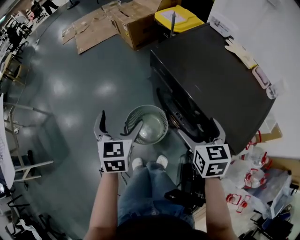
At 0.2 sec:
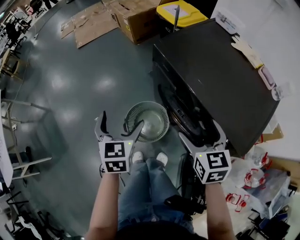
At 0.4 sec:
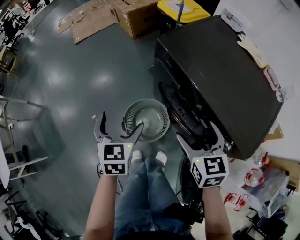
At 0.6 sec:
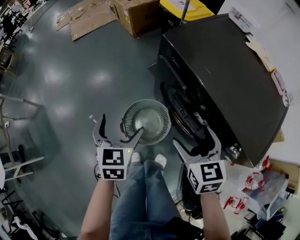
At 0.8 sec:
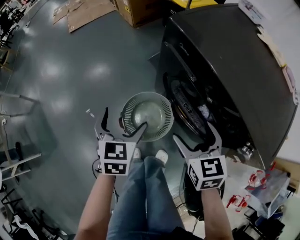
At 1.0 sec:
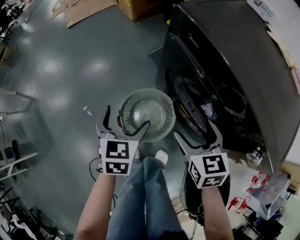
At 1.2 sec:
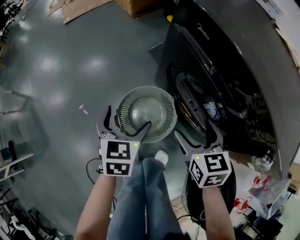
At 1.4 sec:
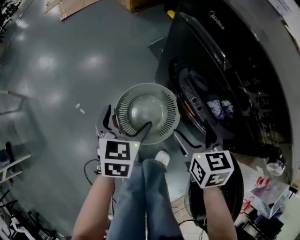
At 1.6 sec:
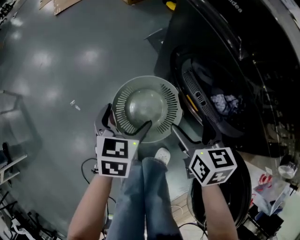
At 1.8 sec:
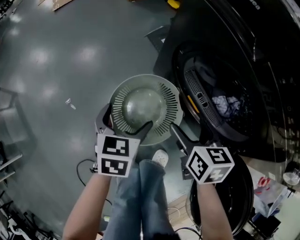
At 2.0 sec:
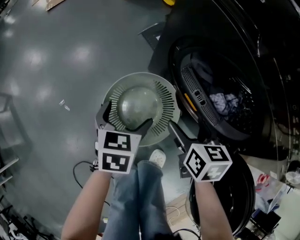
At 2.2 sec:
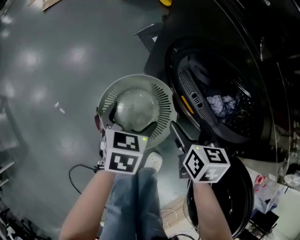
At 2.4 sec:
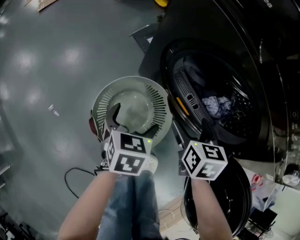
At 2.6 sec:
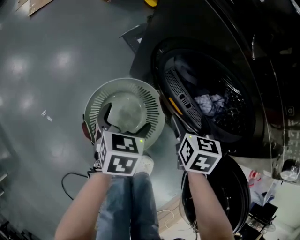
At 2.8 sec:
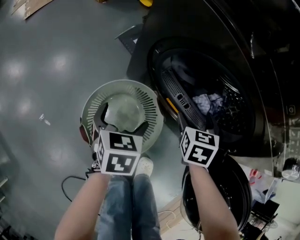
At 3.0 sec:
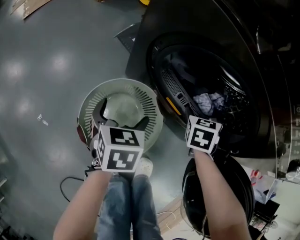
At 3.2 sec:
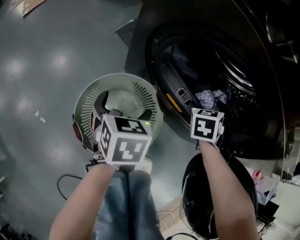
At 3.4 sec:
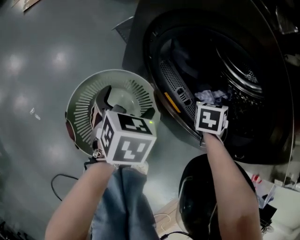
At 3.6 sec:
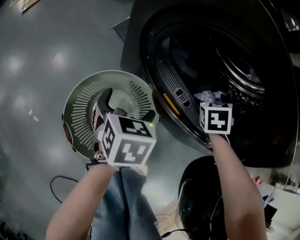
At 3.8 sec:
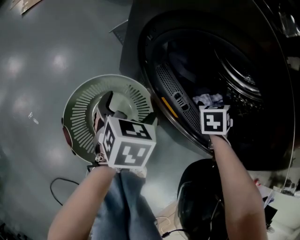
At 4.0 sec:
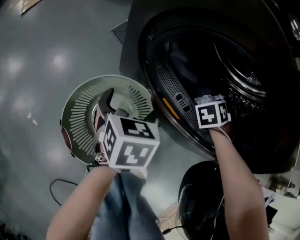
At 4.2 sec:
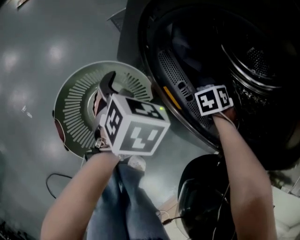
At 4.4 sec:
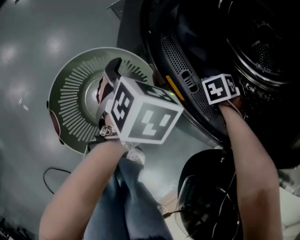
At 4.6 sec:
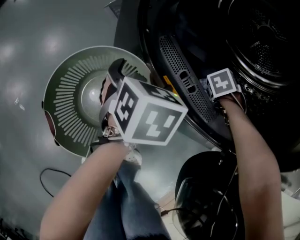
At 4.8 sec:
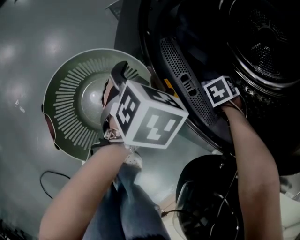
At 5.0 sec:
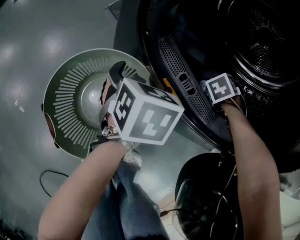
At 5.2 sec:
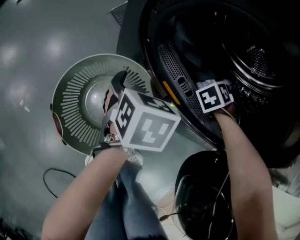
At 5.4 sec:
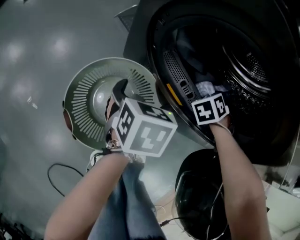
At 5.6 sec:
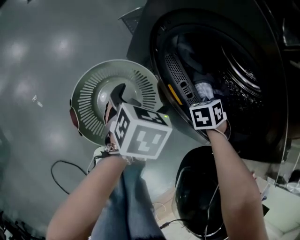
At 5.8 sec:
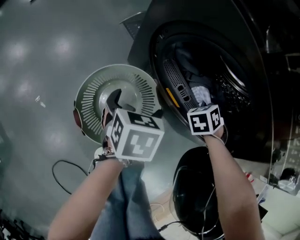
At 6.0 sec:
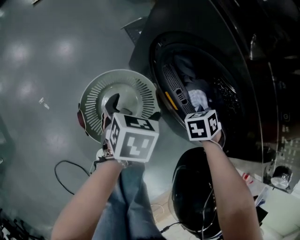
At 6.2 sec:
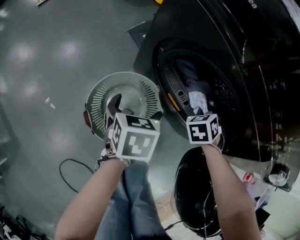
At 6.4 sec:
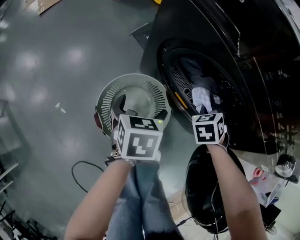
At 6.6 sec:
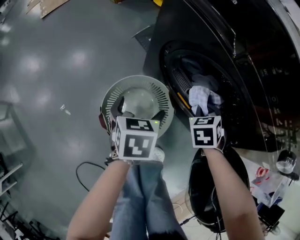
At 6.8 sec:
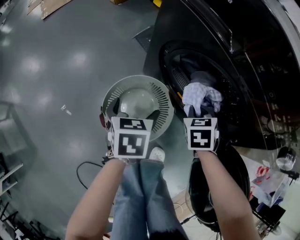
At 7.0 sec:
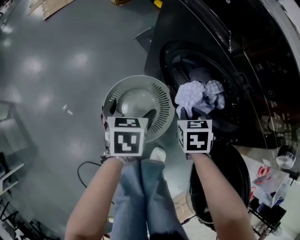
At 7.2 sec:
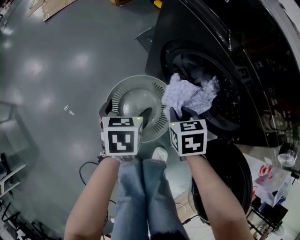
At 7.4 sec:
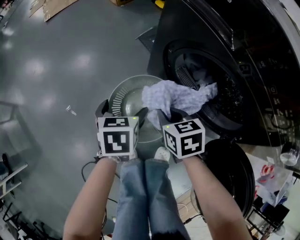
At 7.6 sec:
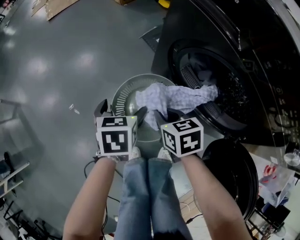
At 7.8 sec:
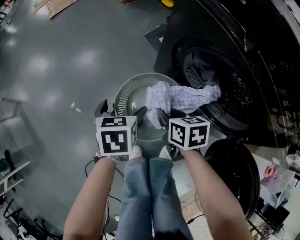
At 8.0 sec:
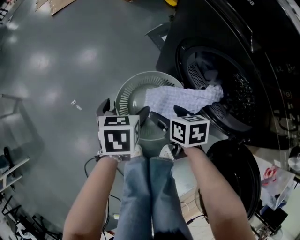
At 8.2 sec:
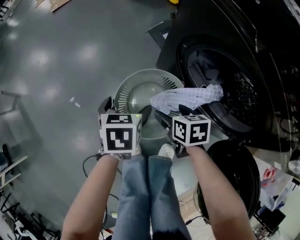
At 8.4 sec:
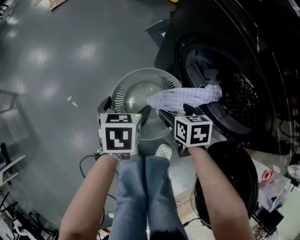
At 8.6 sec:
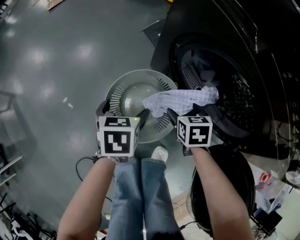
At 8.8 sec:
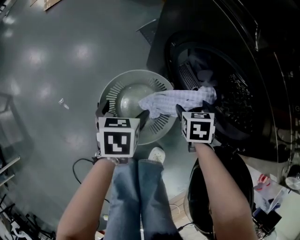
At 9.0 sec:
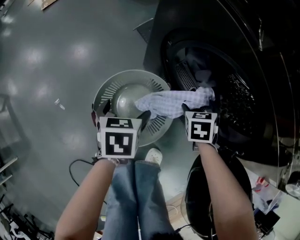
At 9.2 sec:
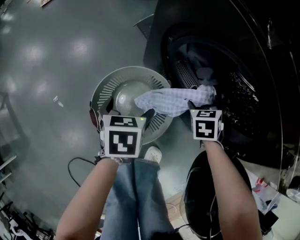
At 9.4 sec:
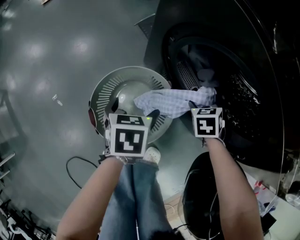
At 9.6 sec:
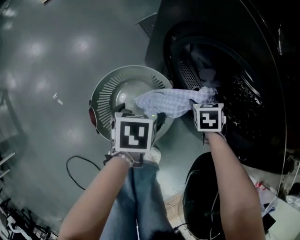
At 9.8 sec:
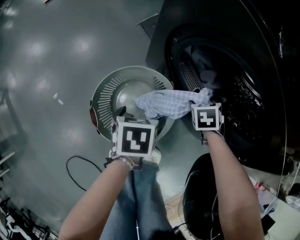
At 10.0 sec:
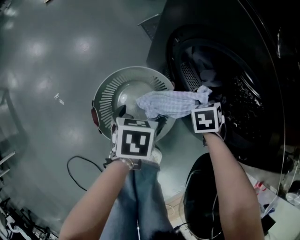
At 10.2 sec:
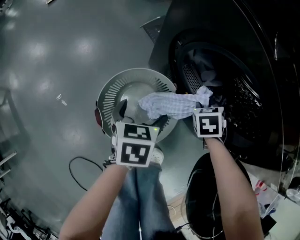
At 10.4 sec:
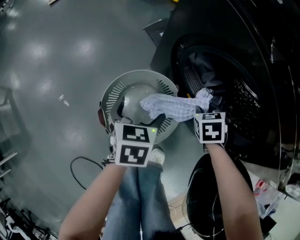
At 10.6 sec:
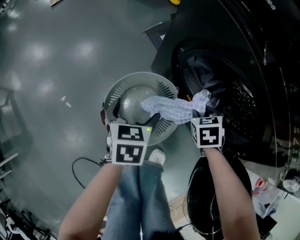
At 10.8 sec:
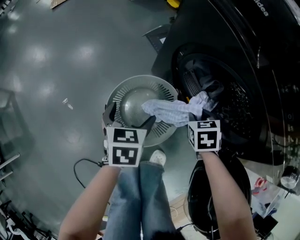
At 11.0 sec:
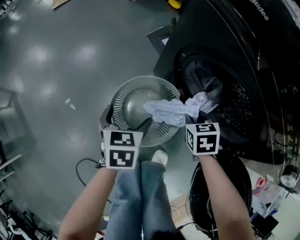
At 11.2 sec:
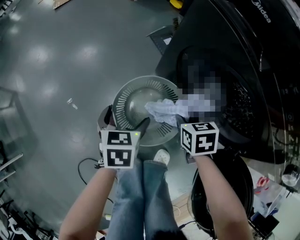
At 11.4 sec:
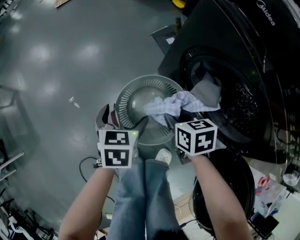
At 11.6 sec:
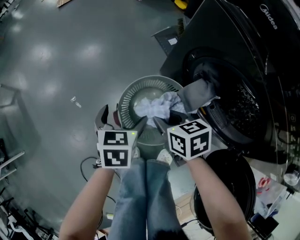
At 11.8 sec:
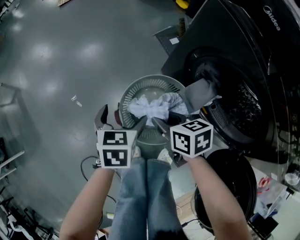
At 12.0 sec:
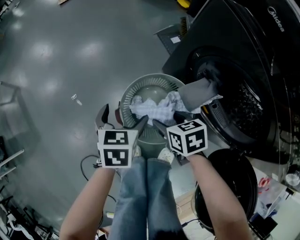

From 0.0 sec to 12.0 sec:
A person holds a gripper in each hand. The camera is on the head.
From 0.0 sec to 1.6 sec: Both grippers travel together downward, roughly 35 cm. The left gripper changes its angle by approximately 20 degrees.
From 1.6 sec to 3.0 sec: The left gripper goes about 10 cm downward. The right gripper shifts by some 25 cm, and turns by roughly 40 degrees.
From 3.0 sec to 4.4 sec: The left gripper travels forward and downward by roughly 10 cm. The right gripper goes some 20 cm forward, downward and to the right, and changes its angle by some 40 degrees.
From 4.4 sec to 6.0 sec: The left gripper is displaced upward and backward by about 10 cm; the right gripper is displaced backward and upward by some 15 cm, and closes its fingers.
From 6.0 sec to 7.6 sec: The left gripper moves about 15 cm; the right gripper shifts by about 30 cm, and changes its angle by approximately 60 degrees.
From 7.6 sec to 9.0 sec: The left gripper moves downward, roughly 5 cm. The right gripper ends up approximately 25 cm from where it was, turns by some 40 degrees, and opens up.
From 9.0 sec to 10.4 sec: The right gripper closes up.
From 10.4 sec to 12.0 sec: The left gripper moves roughly 15 cm, while the right gripper shifts by approximately 25 cm, and changes its angle by about 30 degrees.

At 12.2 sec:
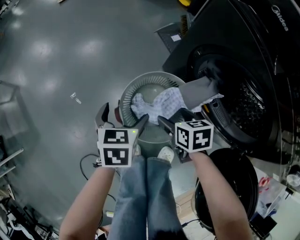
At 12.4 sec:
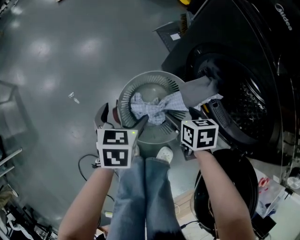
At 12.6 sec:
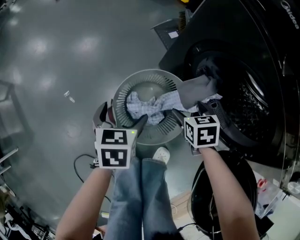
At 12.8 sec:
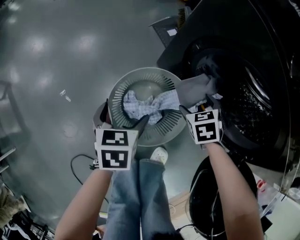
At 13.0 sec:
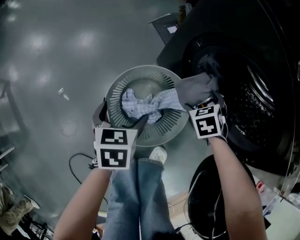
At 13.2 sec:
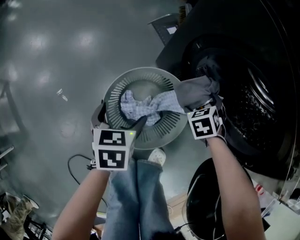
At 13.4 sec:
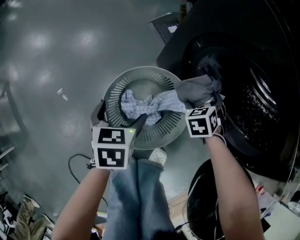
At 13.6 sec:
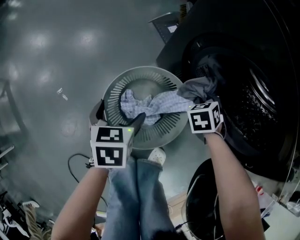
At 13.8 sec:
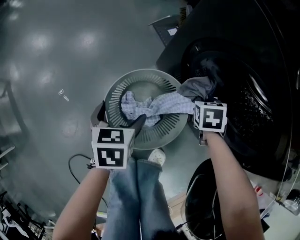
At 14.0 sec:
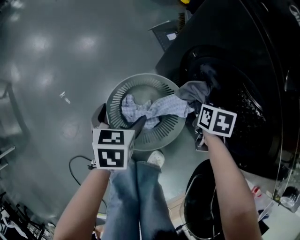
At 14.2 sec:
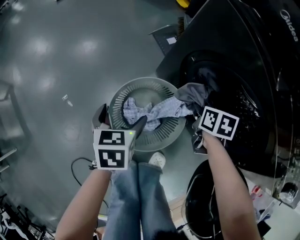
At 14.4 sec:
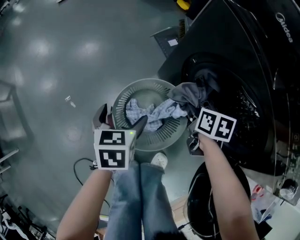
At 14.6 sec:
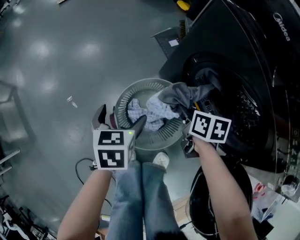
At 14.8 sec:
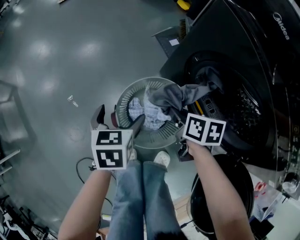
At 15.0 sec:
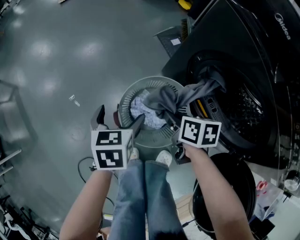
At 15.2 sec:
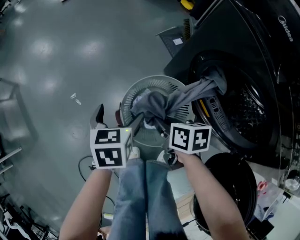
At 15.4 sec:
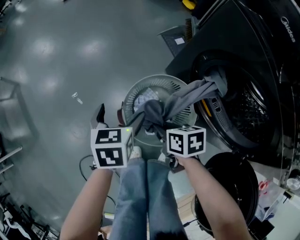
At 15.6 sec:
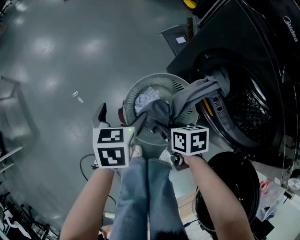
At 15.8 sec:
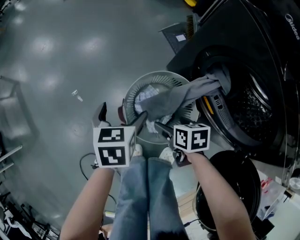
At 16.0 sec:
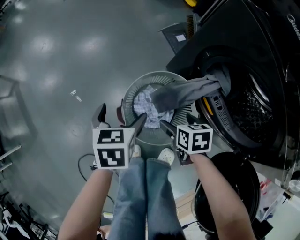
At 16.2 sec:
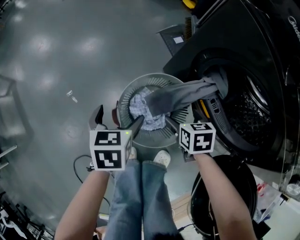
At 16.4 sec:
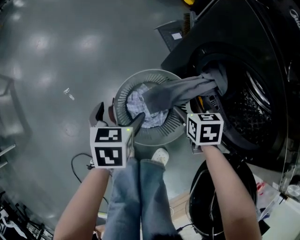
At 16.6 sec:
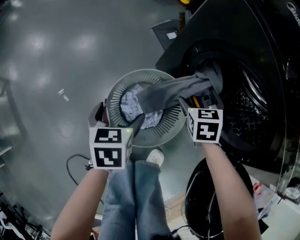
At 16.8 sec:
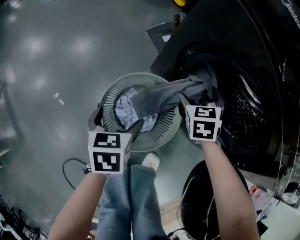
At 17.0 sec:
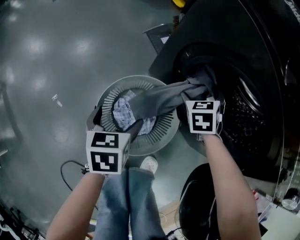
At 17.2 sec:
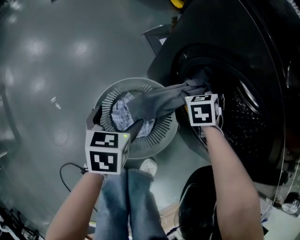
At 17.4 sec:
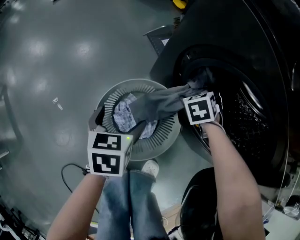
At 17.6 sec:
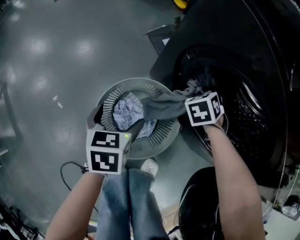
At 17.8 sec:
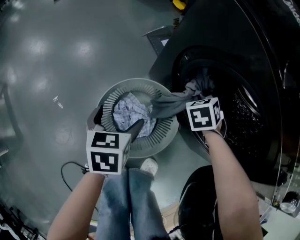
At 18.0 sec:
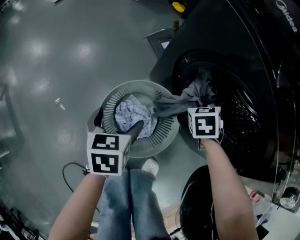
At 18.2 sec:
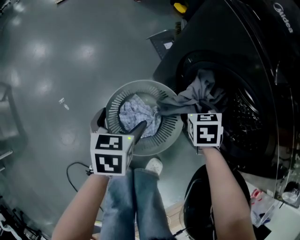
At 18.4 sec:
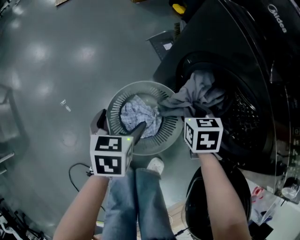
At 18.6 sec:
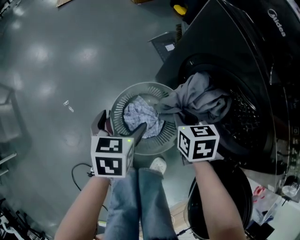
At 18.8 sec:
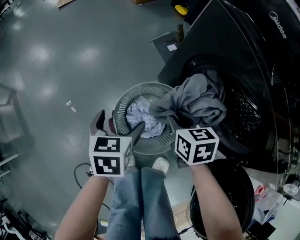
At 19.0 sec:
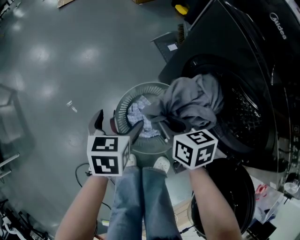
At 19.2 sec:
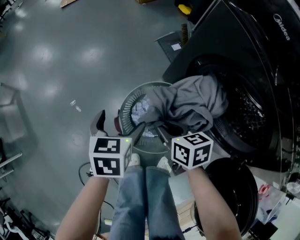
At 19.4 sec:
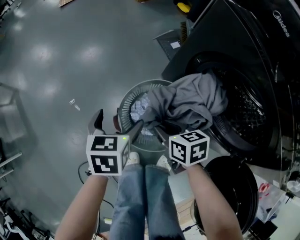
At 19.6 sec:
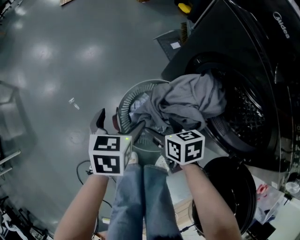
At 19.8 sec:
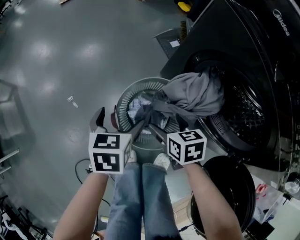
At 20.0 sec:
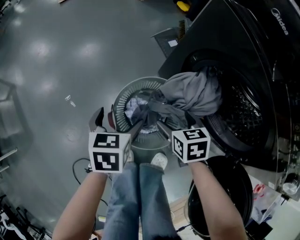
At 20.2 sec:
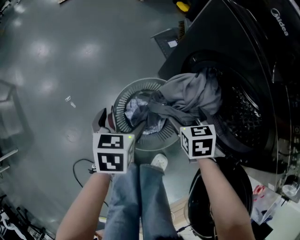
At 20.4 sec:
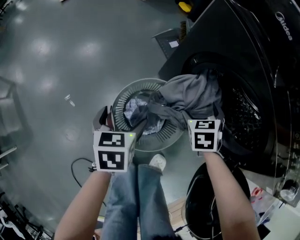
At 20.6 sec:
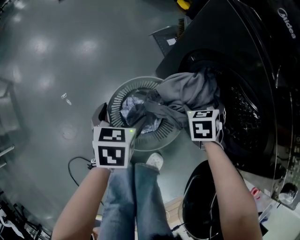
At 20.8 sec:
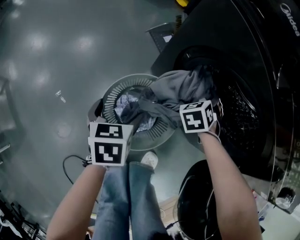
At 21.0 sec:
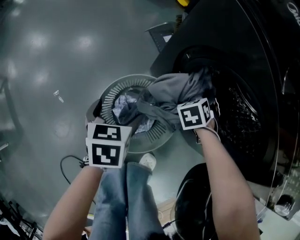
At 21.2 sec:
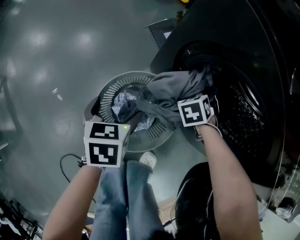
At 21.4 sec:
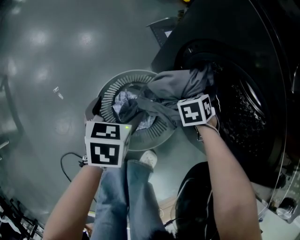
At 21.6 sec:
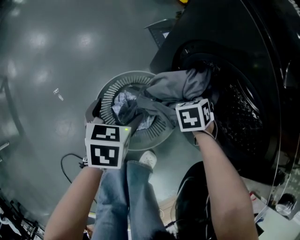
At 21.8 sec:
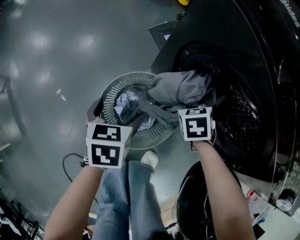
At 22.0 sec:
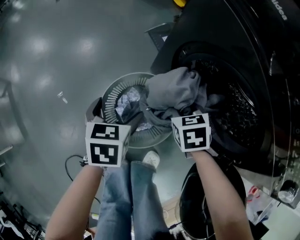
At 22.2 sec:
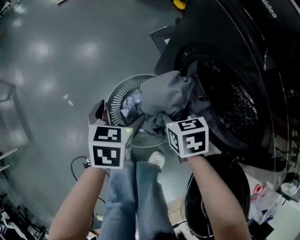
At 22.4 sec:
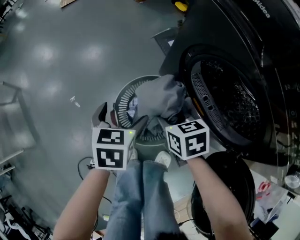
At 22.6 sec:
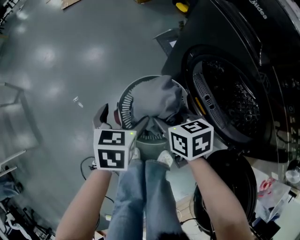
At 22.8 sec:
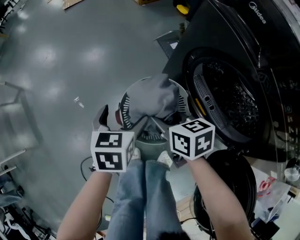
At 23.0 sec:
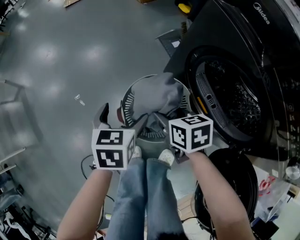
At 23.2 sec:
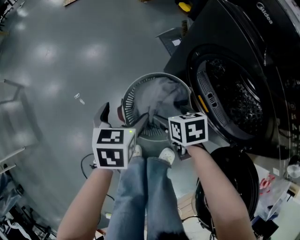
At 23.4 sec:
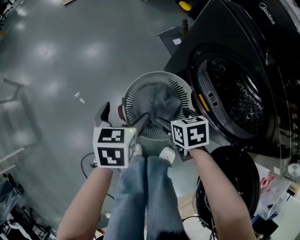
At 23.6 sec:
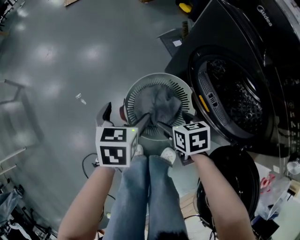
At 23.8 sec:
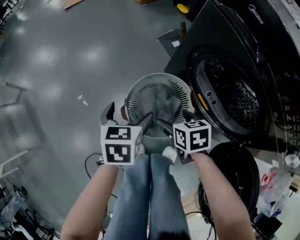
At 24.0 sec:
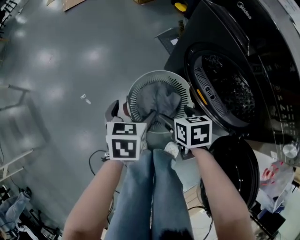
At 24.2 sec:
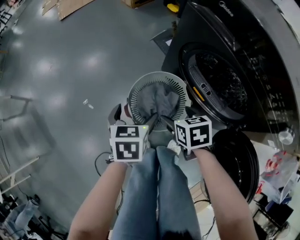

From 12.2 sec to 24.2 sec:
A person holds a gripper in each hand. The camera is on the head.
From 12.2 sec to 13.8 sec: The left gripper shifts some 5 cm downward. The right gripper moves some 20 cm, rotates about 30 degrees, and closes its fingers.
From 13.8 sec to 15.2 sec: The left gripper moves about 10 cm. The right gripper shifts by roughly 25 cm, and rotates roughly 50 degrees.
From 15.2 sec to 16.6 sec: The right gripper moves roughly 20 cm, rotates approximately 50 degrees, and opens its fingers. The left gripper shifts by approximately 5 cm.
From 16.6 sec to 18.2 sec: The right gripper travels forward and back again, some 10 cm each way, and closes its fingers.
From 18.2 sec to 19.8 sec: The right gripper changes place by approximately 20 cm, changes its angle by roughly 30 degrees, and opens; the left gripper moves roughly 5 cm.
From 19.8 sec to 21.2 sec: The right gripper changes place by roughly 25 cm, and rotates approximately 40 degrees. The left gripper ends up about 10 cm from where it was.
From 21.2 sec to 22.6 sec: The right gripper ends up approximately 25 cm from where it was, rotates some 50 degrees, and closes. The left gripper goes about 10 cm upward.
From 22.6 sec to 24.2 sec: The left gripper shifts about 5 cm upward. The right gripper travels backward by about 5 cm, and opens up.
